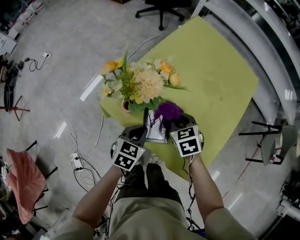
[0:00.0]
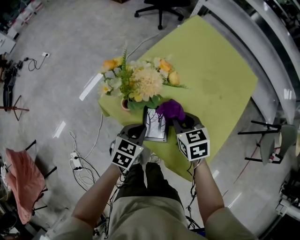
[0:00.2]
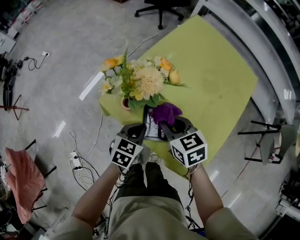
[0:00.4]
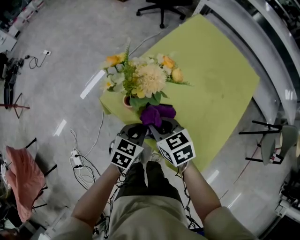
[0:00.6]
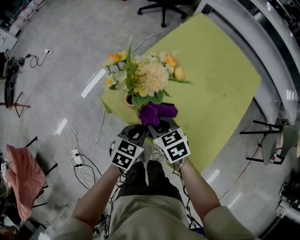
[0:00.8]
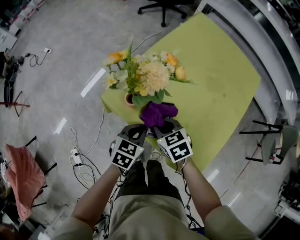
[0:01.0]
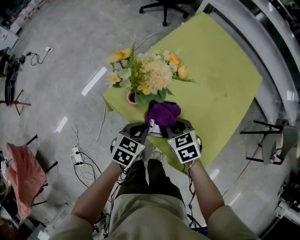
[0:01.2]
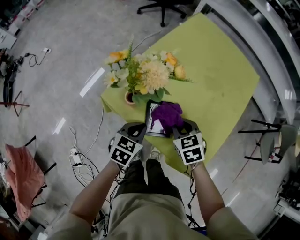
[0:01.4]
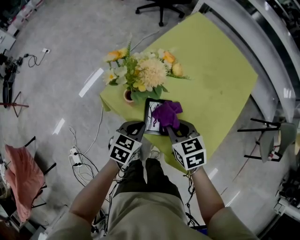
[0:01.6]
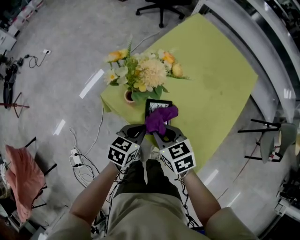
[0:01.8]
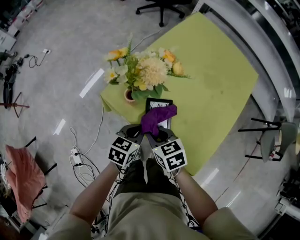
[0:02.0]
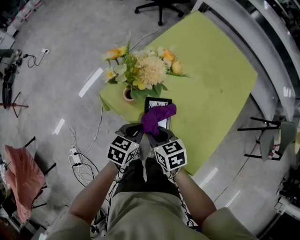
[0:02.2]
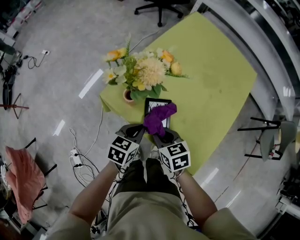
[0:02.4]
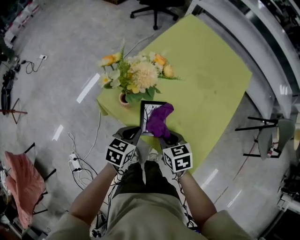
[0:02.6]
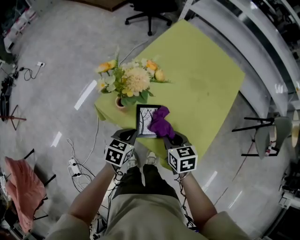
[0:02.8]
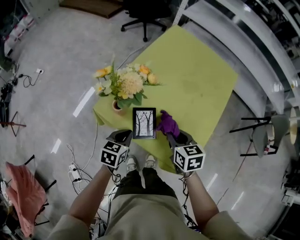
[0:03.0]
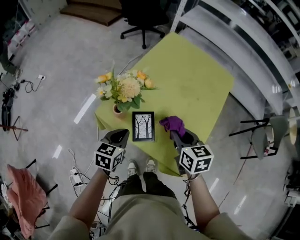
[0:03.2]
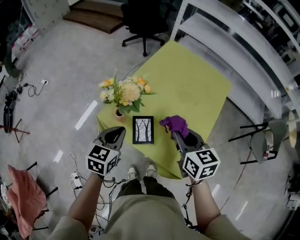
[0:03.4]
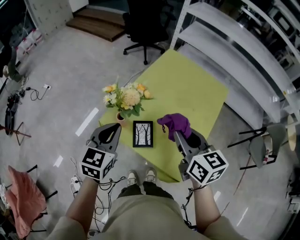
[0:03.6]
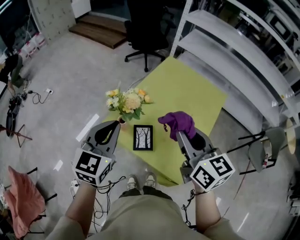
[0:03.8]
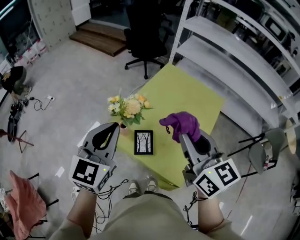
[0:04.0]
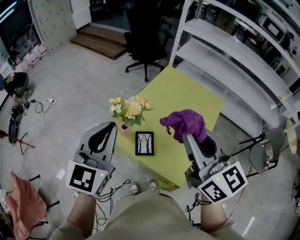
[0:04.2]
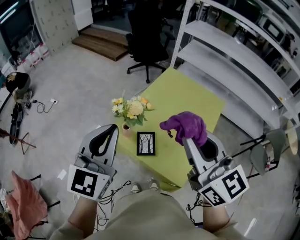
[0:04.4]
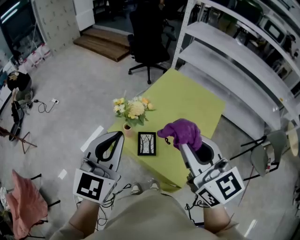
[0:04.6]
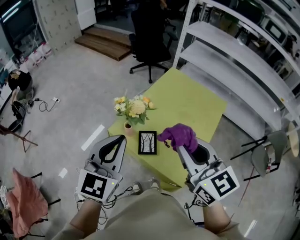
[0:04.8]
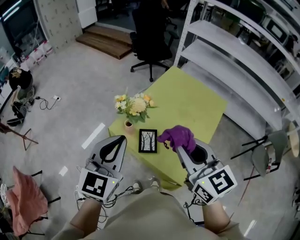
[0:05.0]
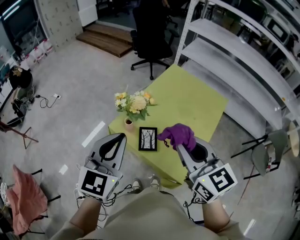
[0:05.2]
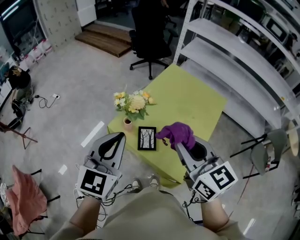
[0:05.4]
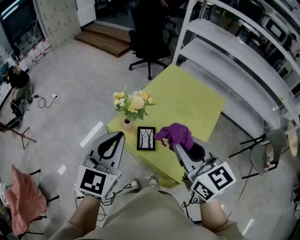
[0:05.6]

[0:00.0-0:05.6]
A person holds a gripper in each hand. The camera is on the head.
0:00.0 to 0:01.4: The right gripper moves some 10 cm to the left and comes back.
0:01.4 to 0:02.8: The right gripper travels to the left and back again, some 10 cm each way, and swivels approximately 20 degrees.
0:02.8 to 0:04.2: The grippers both shift upward by about 40 cm. The left gripper tilts its fingers roughly 40 degrees upward; the right gripper points its fingers approximately 50 degrees further upward.
0:04.2 to 0:05.6: The left gripper shifts by approximately 5 cm. The right gripper moves downward, about 5 cm.

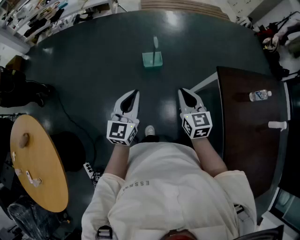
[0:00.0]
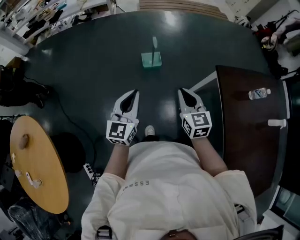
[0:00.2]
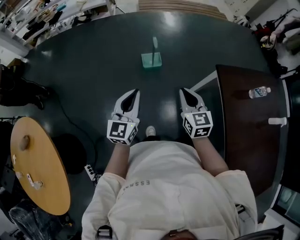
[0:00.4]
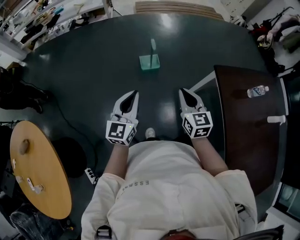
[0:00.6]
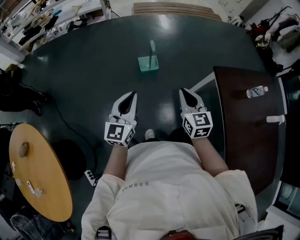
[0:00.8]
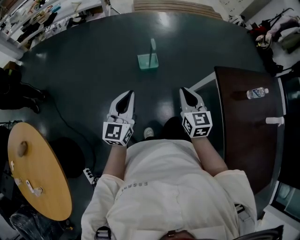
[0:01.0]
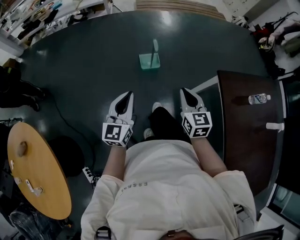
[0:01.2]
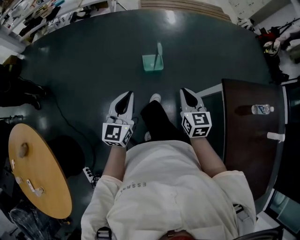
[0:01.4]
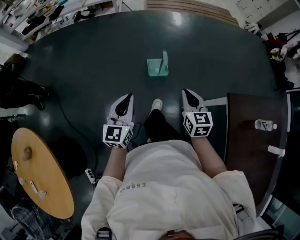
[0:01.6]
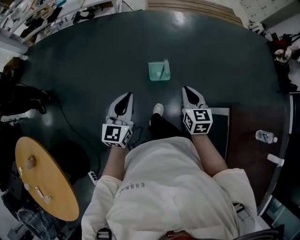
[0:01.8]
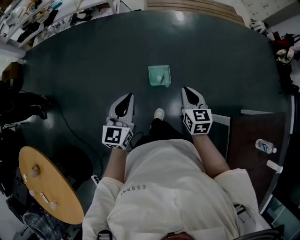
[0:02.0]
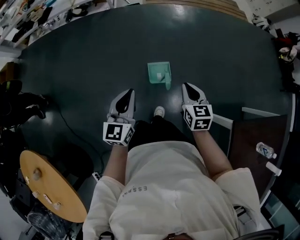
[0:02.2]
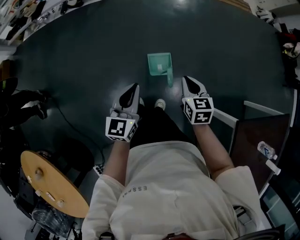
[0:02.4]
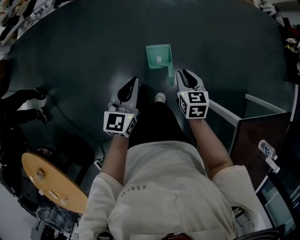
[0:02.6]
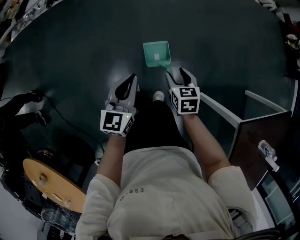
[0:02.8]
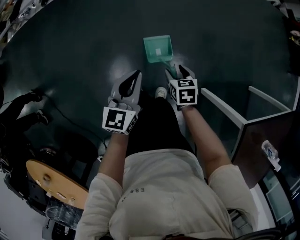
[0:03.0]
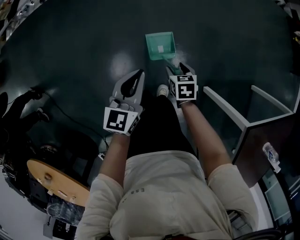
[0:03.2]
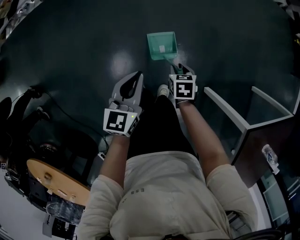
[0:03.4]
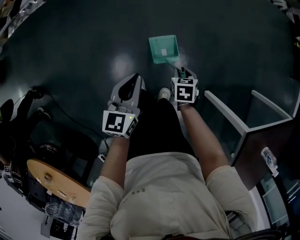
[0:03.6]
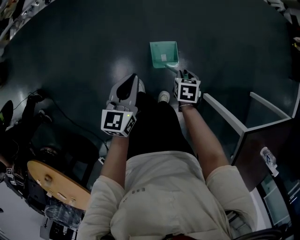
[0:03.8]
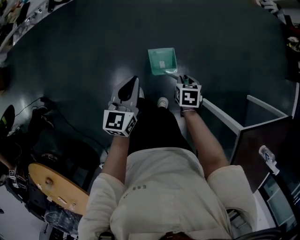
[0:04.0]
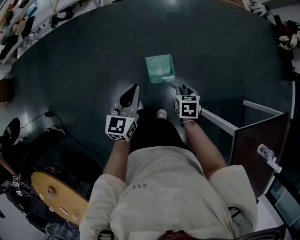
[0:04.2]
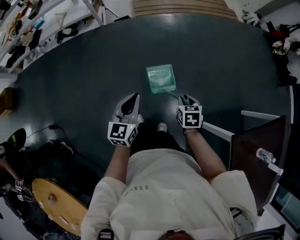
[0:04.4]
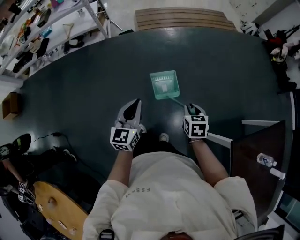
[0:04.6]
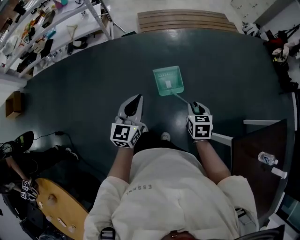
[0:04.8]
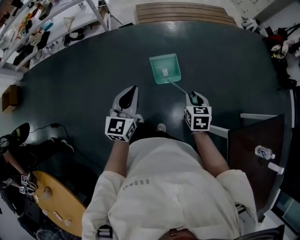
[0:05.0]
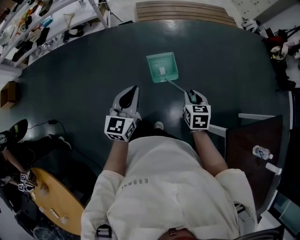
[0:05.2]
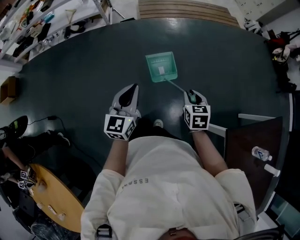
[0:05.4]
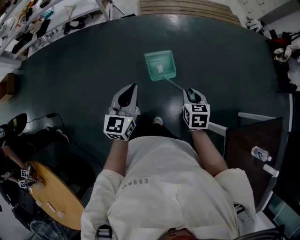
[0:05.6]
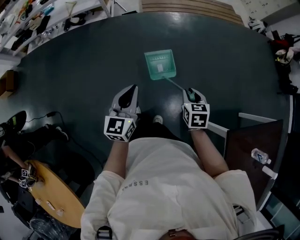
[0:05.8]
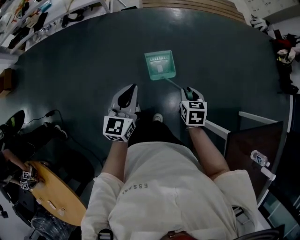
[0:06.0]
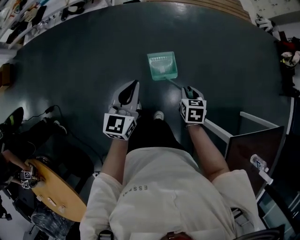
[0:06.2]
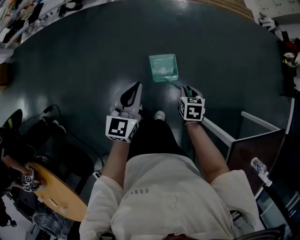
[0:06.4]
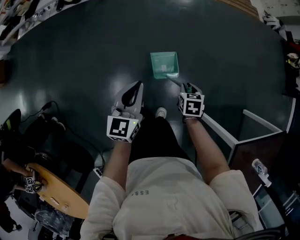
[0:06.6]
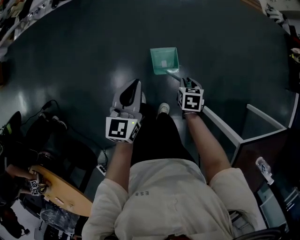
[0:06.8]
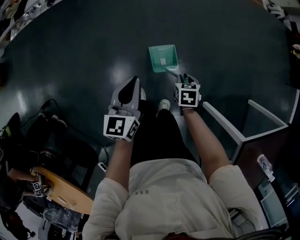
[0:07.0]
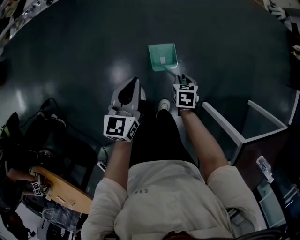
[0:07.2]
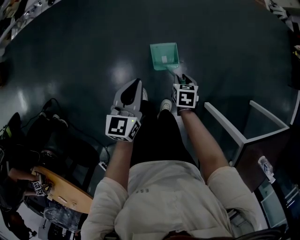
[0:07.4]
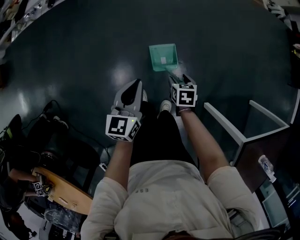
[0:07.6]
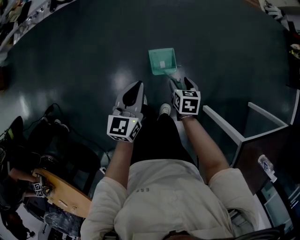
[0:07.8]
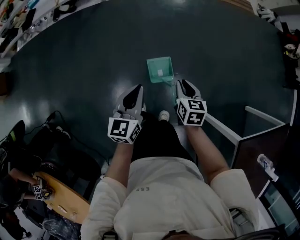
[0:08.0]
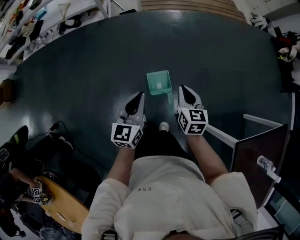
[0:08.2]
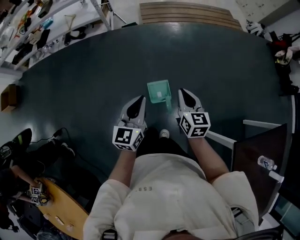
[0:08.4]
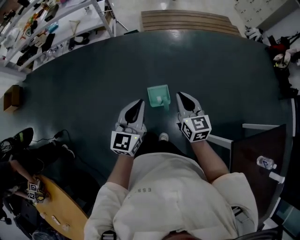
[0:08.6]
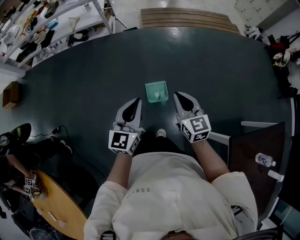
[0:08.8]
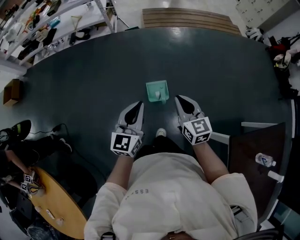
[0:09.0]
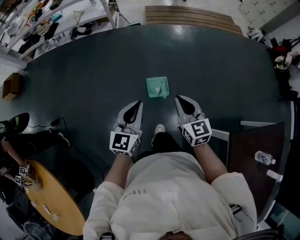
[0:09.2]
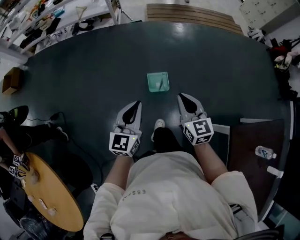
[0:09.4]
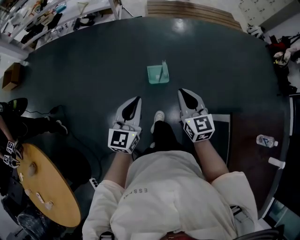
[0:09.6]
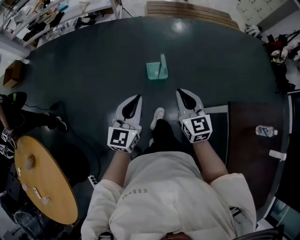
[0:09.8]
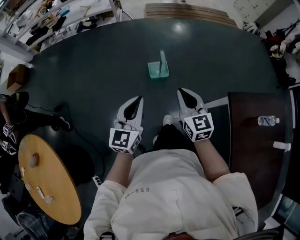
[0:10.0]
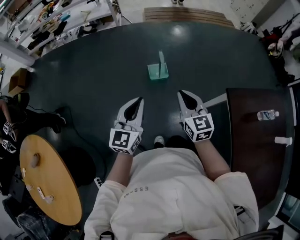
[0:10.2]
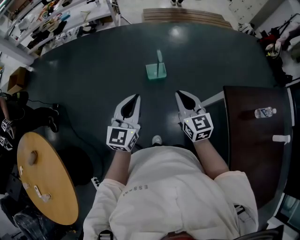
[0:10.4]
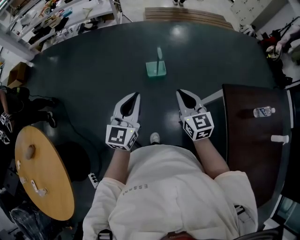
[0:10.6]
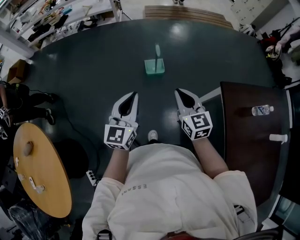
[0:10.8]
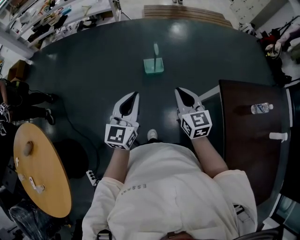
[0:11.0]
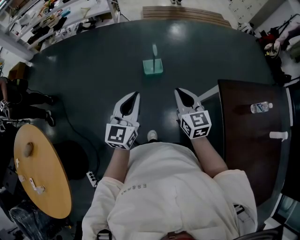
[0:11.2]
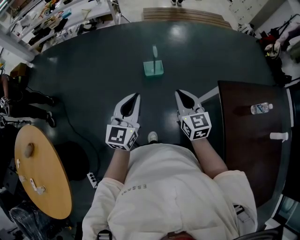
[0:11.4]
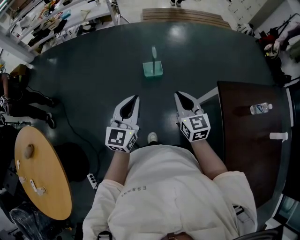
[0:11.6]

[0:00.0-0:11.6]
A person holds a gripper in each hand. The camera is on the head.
0:00.0 to 0:01.4: The right gripper travels forward by approximately 10 cm; the left gripper heads forward and to the left, covering about 10 cm.
0:01.4 to 0:02.8: The right gripper travels forward and downward by about 40 cm, turns by approximately 30 degrees, and opens; the left gripper shifts approximately 40 cm forward.
0:02.8 to 0:04.4: The left gripper is displaced upward by roughly 5 cm. Meanwhile the right gripper travels upward and to the right by roughly 10 cm, and closes its fingers.
0:04.4 to 0:05.8: The grippers both shift upward by approximately 5 cm.
0:05.8 to 0:07.2: The left gripper moves downward, forward and to the left, some 20 cm. Meanwhile the right gripper is displaced downward and to the left by approximately 30 cm, and turns by some 20 degrees.
0:07.2 to 0:08.8: The right gripper goes approximately 35 cm upward, points its fingers some 50 degrees further upward, and opens and closes again. Meanwhile the left gripper shifts roughly 25 cm upward, backward and to the right, and turns by approximately 20 degrees.
0:08.8 to 0:10.2: Both grippers move backward, approximately 35 cm.
0:10.2 to 0:11.6: Both grippers move backward, about 5 cm.

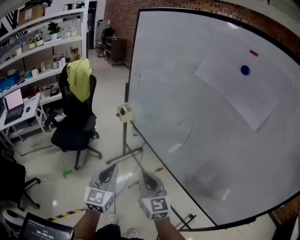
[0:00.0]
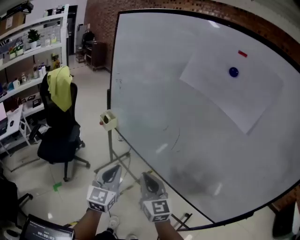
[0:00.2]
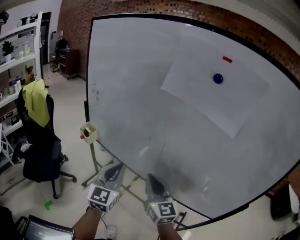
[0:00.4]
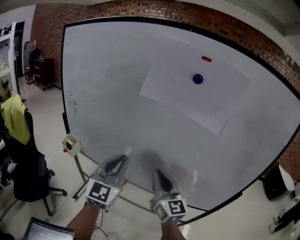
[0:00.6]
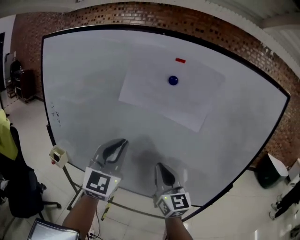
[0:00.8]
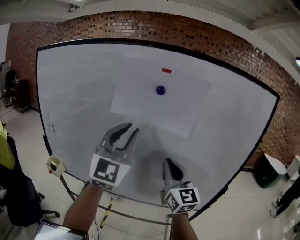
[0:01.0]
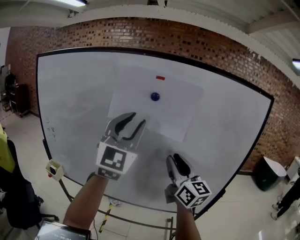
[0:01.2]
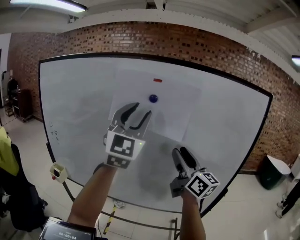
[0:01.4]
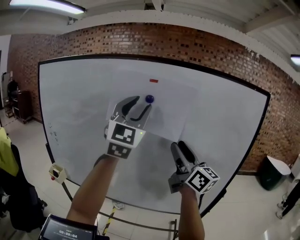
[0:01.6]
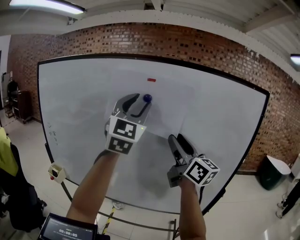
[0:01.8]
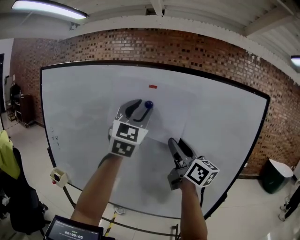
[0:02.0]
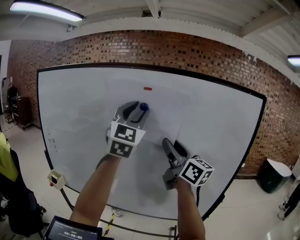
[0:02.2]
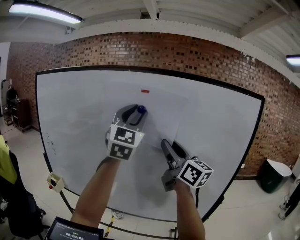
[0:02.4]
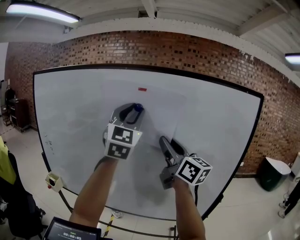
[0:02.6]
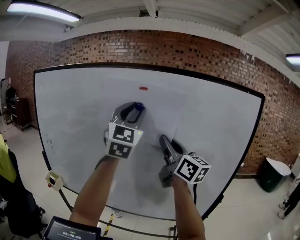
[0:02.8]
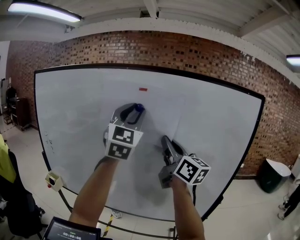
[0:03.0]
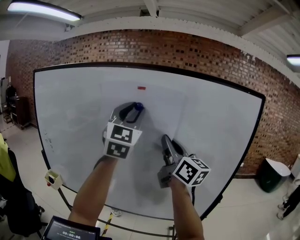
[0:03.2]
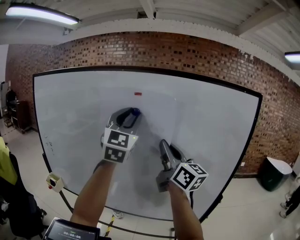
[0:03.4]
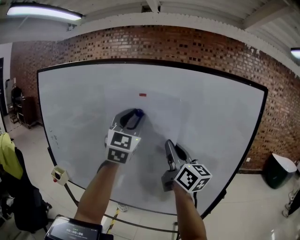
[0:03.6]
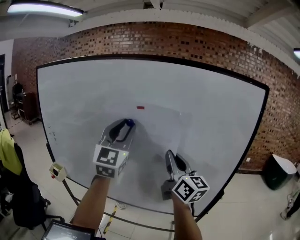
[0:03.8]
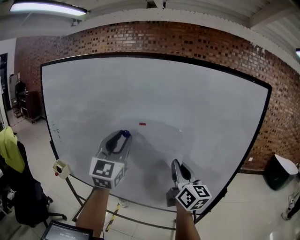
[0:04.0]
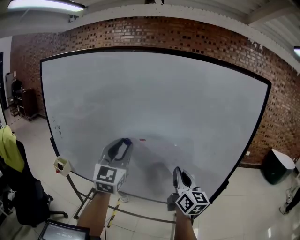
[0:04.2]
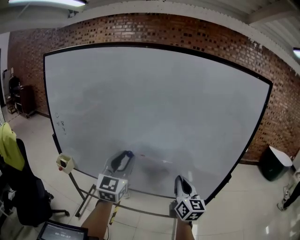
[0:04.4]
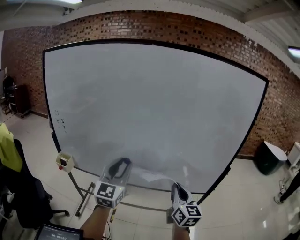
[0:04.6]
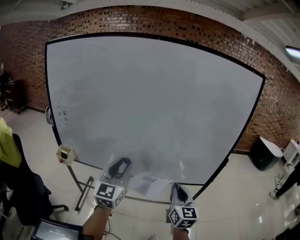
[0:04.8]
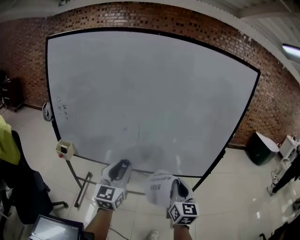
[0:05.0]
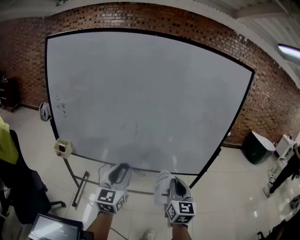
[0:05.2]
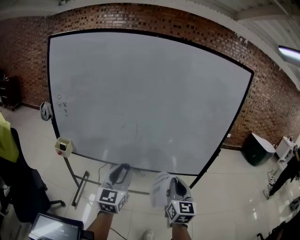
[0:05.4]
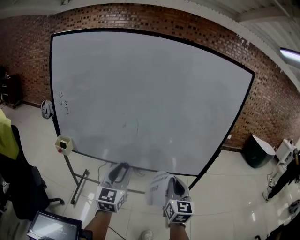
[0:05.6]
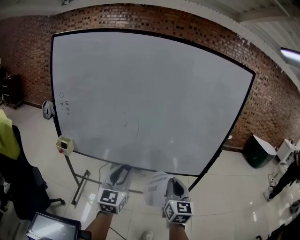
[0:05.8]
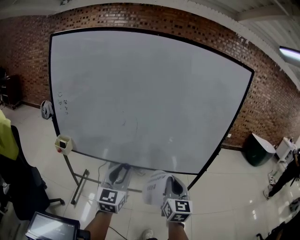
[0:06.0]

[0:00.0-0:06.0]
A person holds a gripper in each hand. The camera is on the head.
0:00.0 to 0:01.6: Both grippers move upward, roughly 35 cm. The left gripper rotates roughly 50 degrees, and opens up. Meanwhile the right gripper rotates some 40 degrees, and opens up.
0:01.6 to 0:03.0: The right gripper ends up roughly 5 cm from where it was, and closes up.
0:03.0 to 0:04.4: The left gripper travels downward by about 25 cm, and rotates about 20 degrees; the right gripper is displaced downward and backward by some 25 cm, and changes its angle by roughly 30 degrees.
0:04.4 to 0:06.0: The right gripper is displaced backward by approximately 15 cm, while the left gripper goes roughly 20 cm backward and downward.
